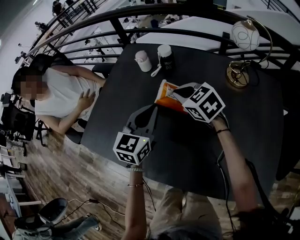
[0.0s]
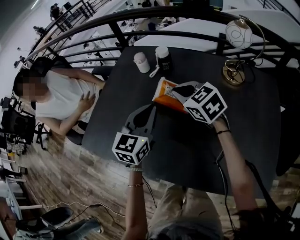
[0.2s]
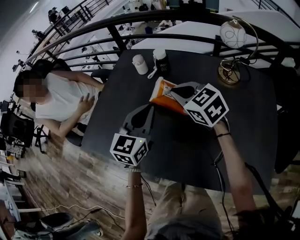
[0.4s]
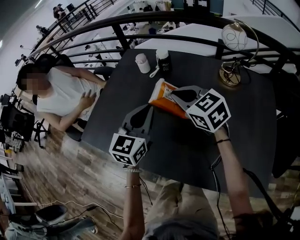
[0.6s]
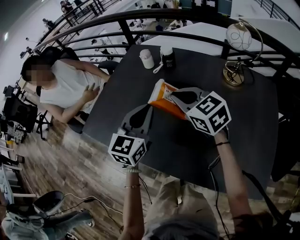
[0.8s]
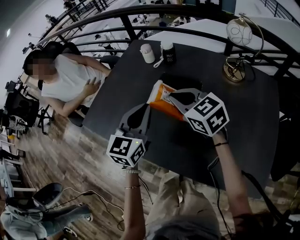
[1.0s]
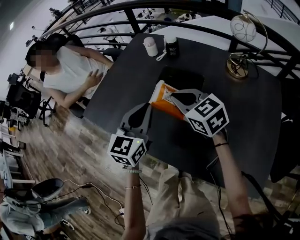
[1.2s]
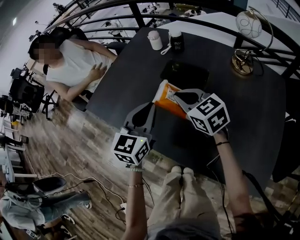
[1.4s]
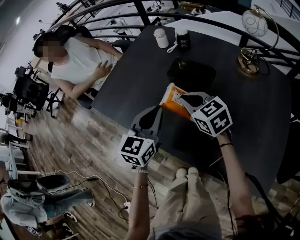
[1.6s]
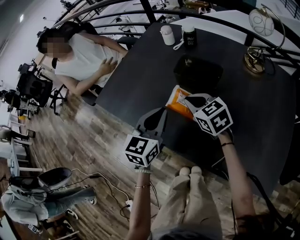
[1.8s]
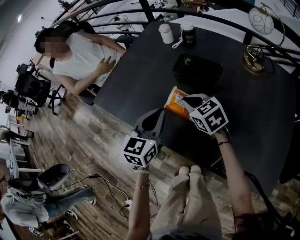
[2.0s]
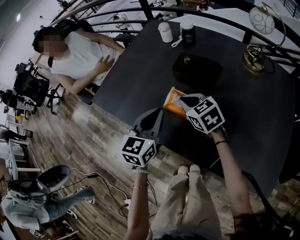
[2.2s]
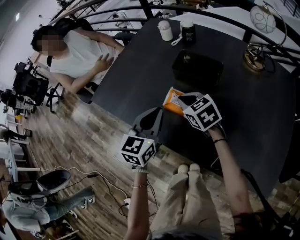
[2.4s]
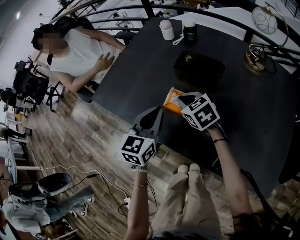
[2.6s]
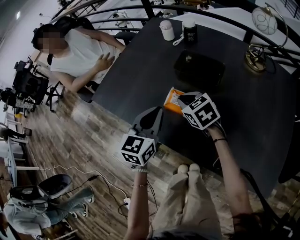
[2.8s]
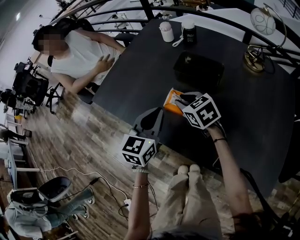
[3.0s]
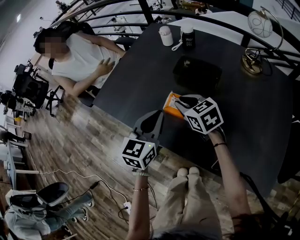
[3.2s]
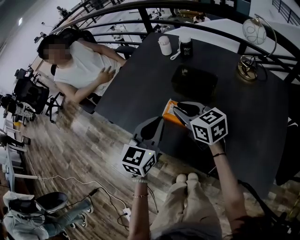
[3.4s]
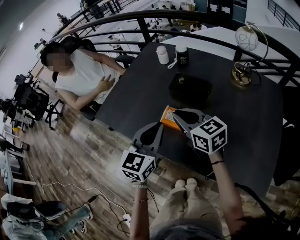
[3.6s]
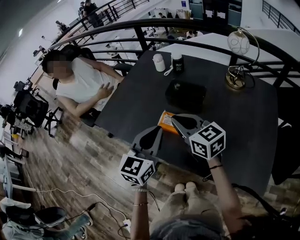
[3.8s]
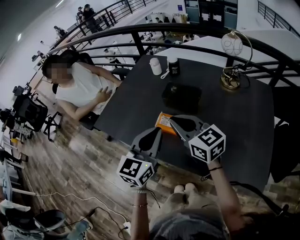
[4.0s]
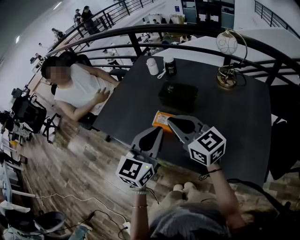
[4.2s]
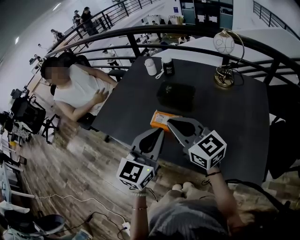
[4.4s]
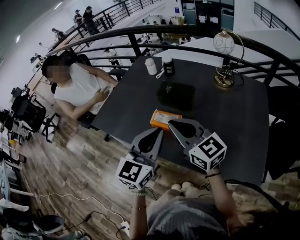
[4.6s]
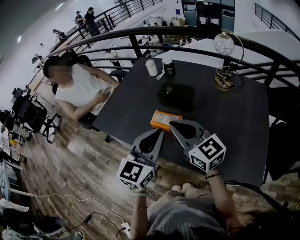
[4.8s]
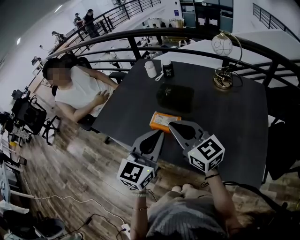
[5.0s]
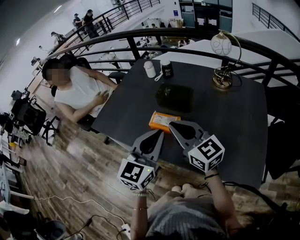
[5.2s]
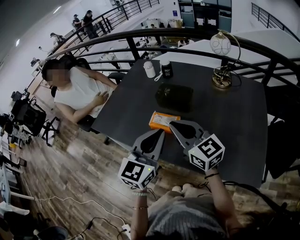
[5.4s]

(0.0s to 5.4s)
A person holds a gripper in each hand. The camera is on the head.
0.0s - 1.4s: Both grippers travel together backward, about 15 cm.
1.4s - 2.8s: The left gripper heads downward, covering some 5 cm. The right gripper shifts about 10 cm downward and to the left.
2.8s - 4.0s: Both grippers move upward and backward, about 20 cm. The right gripper points its fingers about 30 degrees further upward.
4.0s - 5.4s: The left gripper shifts by some 5 cm. The right gripper moves backward, approximately 5 cm.

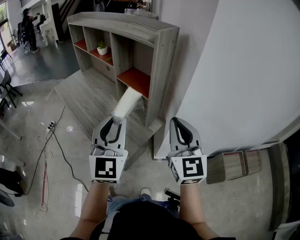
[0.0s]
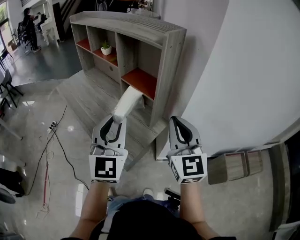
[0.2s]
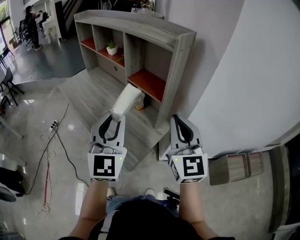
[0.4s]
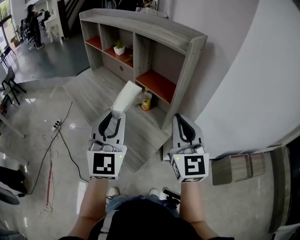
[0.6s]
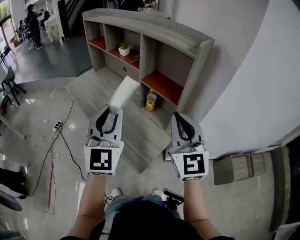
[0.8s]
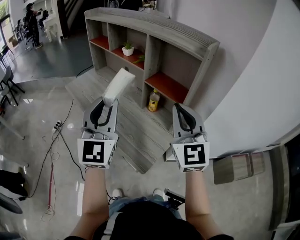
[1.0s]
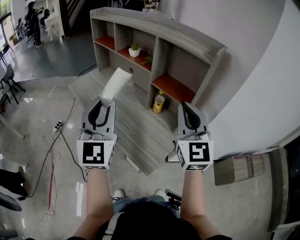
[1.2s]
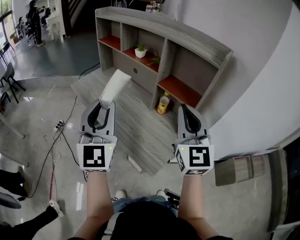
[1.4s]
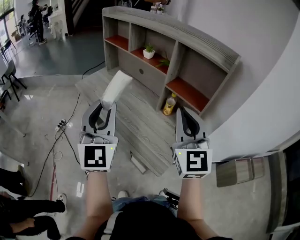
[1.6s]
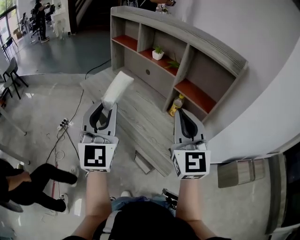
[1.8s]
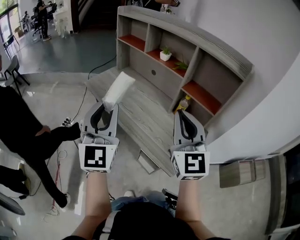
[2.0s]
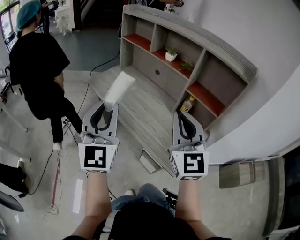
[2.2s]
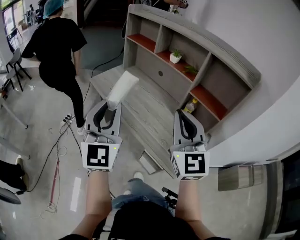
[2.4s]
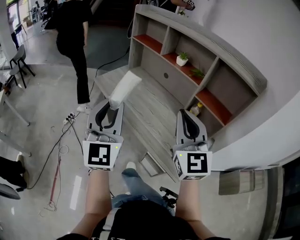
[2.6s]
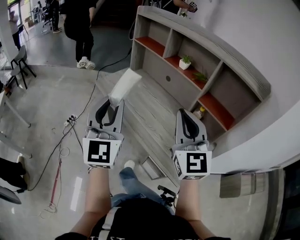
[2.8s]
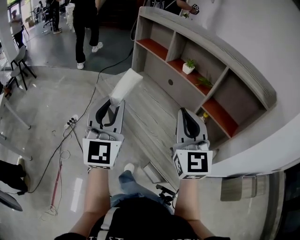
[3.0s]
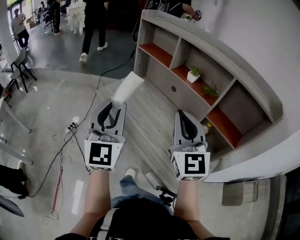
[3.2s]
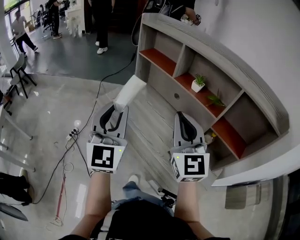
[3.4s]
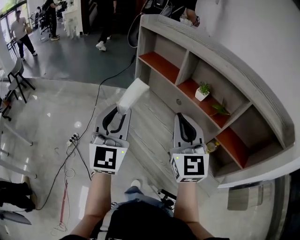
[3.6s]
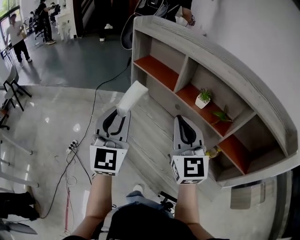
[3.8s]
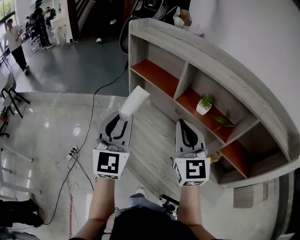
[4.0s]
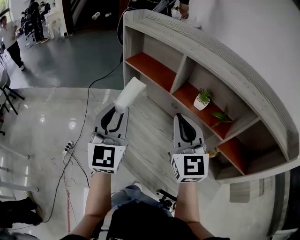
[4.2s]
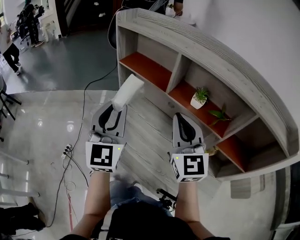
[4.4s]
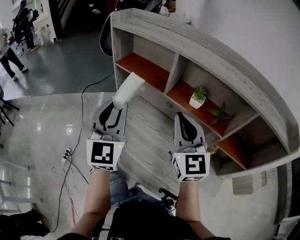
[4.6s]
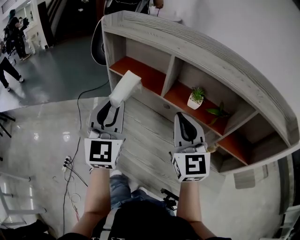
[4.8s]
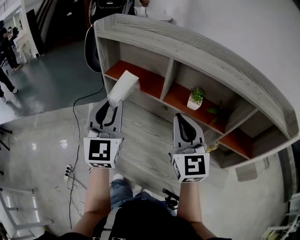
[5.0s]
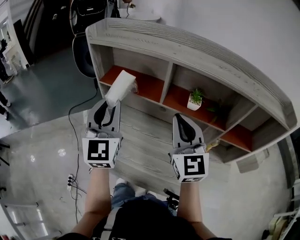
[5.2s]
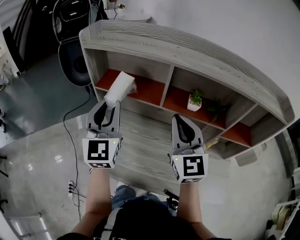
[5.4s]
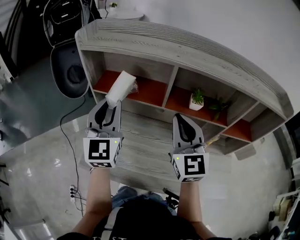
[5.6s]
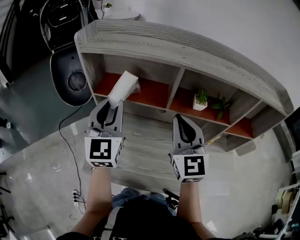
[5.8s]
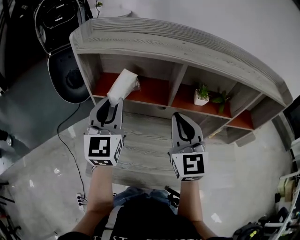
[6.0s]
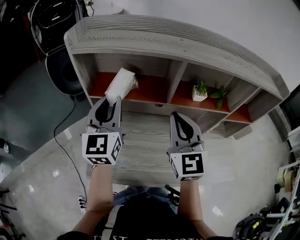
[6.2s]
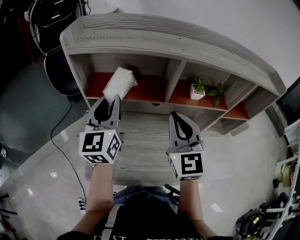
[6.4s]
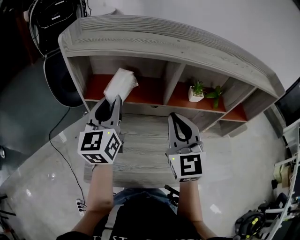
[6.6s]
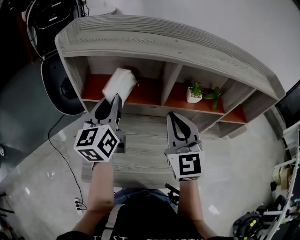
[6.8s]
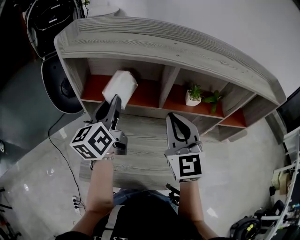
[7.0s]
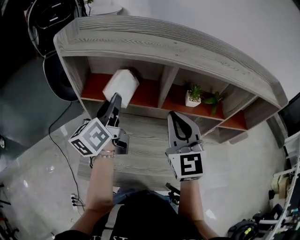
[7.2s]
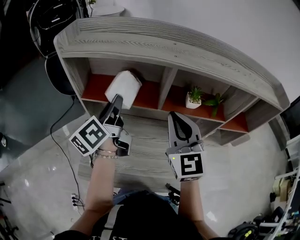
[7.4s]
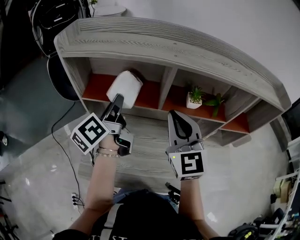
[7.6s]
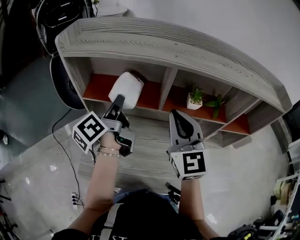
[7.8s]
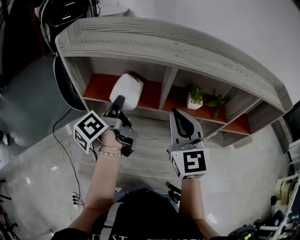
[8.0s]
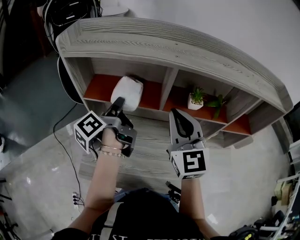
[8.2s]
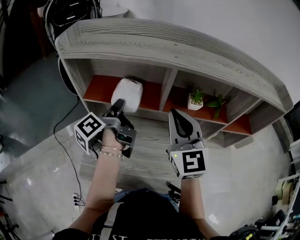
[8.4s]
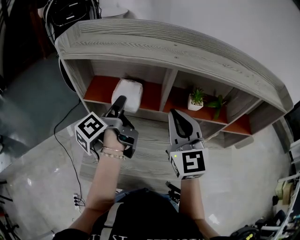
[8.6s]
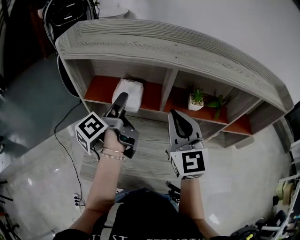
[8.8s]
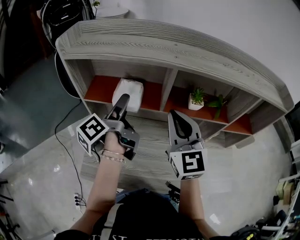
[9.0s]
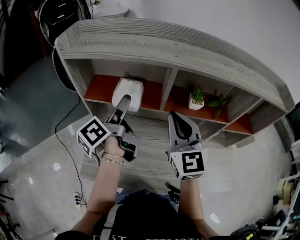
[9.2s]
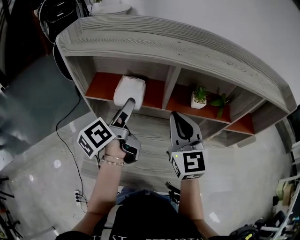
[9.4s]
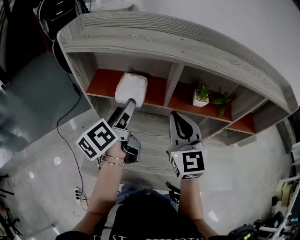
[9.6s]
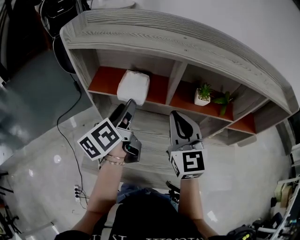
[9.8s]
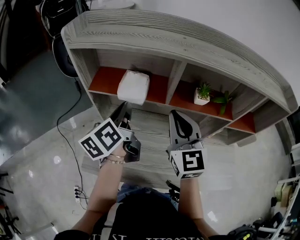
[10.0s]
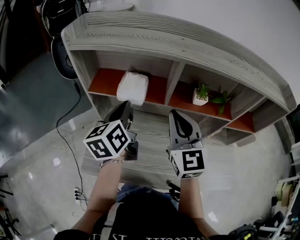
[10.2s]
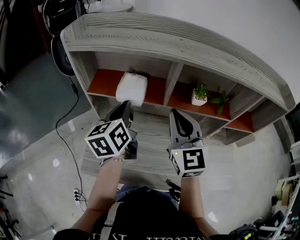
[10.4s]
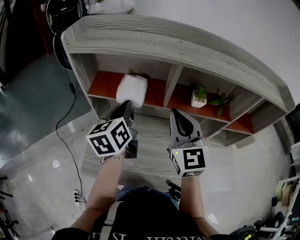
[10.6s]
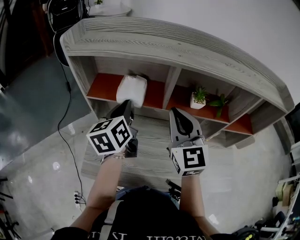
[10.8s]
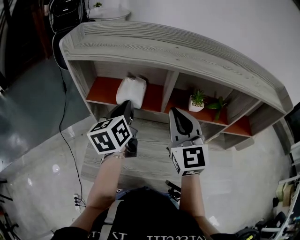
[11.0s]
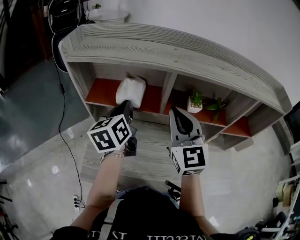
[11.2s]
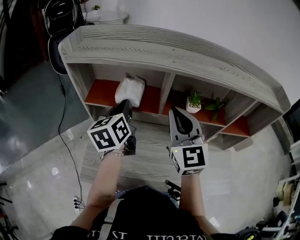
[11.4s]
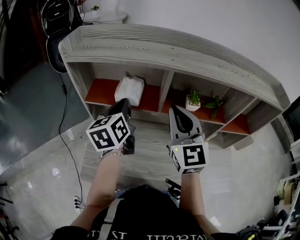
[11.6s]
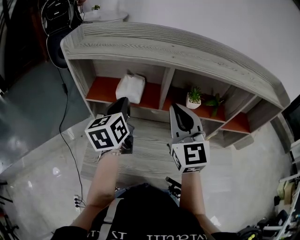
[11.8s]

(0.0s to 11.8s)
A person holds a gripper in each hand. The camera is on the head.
0.0s - 1.4s: The two grippers go approximately 25 cm to the left.
1.4s - 3.0s: Both grippers travel together to the left and forward, approximately 25 cm.
3.0s - 4.4s: The grippers both shift forward by some 30 cm.
4.4s - 6.0s: The left gripper shifts by some 20 cm, and changes its angle by roughly 30 degrees. The right gripper moves some 10 cm, and swivels approximately 30 degrees.
6.0s - 7.4s: The left gripper changes place by some 5 cm, and rotates around the line of its fingers by about 60 degrees, counterclockwise from behind.
7.4s - 8.8s: The left gripper swivels about 30 degrees, and opens.
8.8s - 10.4s: The left gripper rotates around the line of its fingers by roughly 50 degrees, clockwise from behind, and closes its fingers.
10.4s - 11.8s: The grippers stay close to where they were, moving slightly.

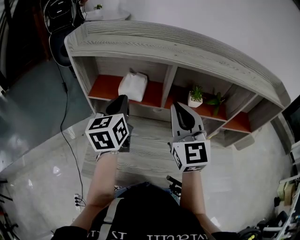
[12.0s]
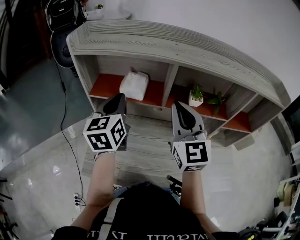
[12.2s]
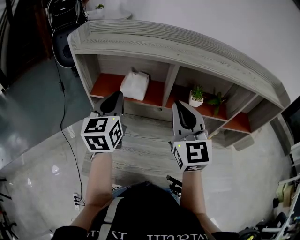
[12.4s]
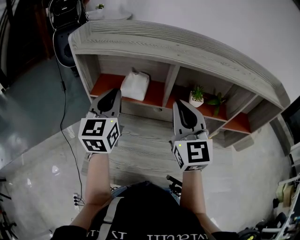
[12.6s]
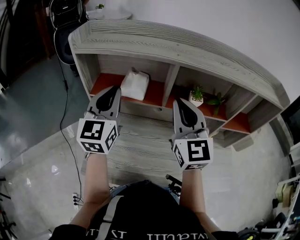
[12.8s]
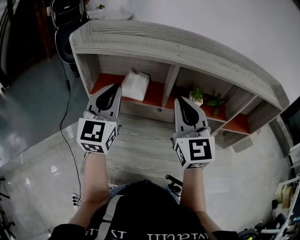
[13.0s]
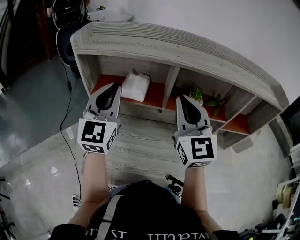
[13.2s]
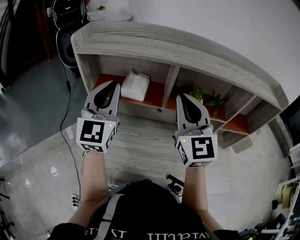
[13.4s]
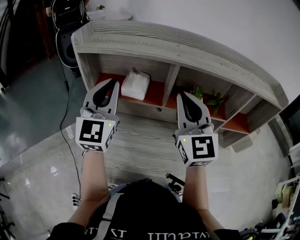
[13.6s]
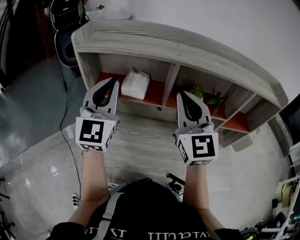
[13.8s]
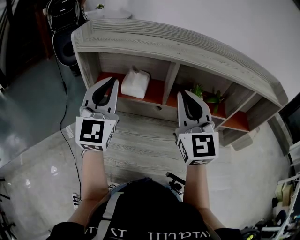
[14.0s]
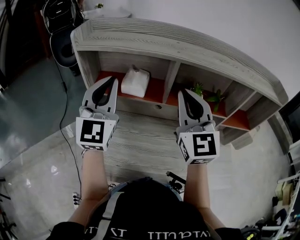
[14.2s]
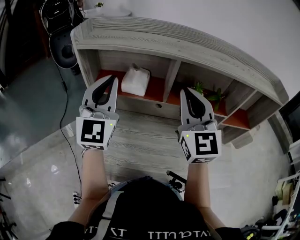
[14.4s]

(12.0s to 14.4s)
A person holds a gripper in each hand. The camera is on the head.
12.0s - 13.2s: The left gripper travels upward by some 10 cm, and rotates approximately 40 degrees.
13.2s - 14.4s: The grippers make only small movements.

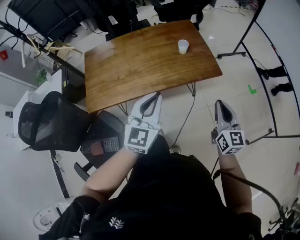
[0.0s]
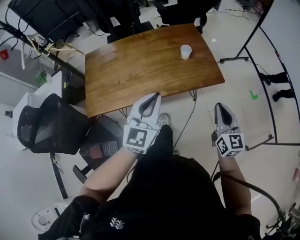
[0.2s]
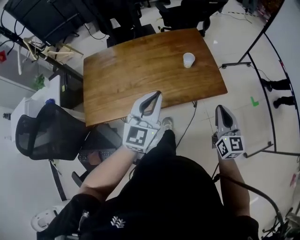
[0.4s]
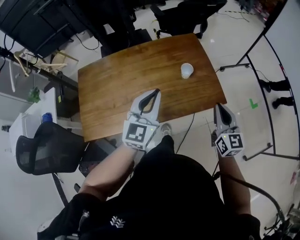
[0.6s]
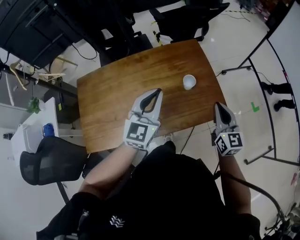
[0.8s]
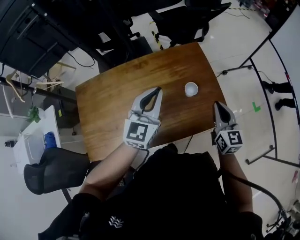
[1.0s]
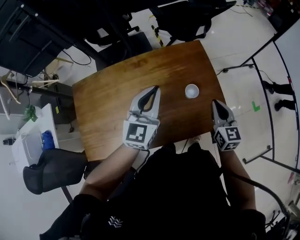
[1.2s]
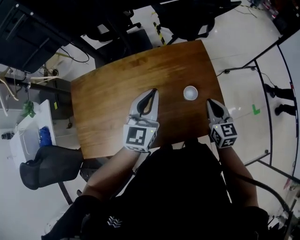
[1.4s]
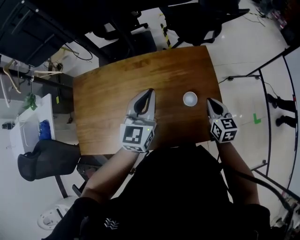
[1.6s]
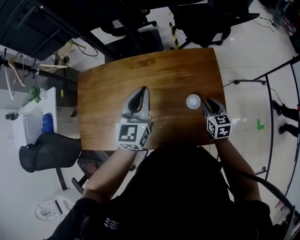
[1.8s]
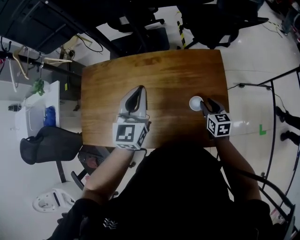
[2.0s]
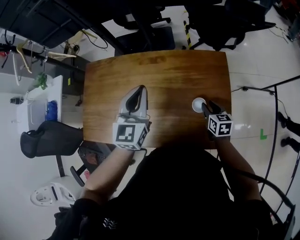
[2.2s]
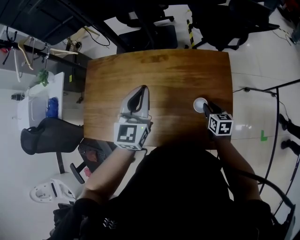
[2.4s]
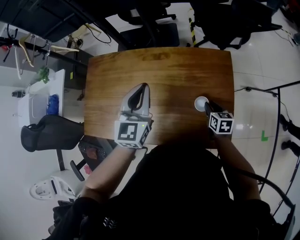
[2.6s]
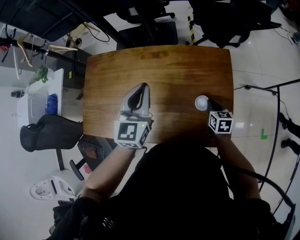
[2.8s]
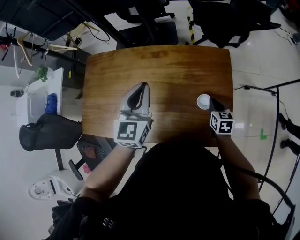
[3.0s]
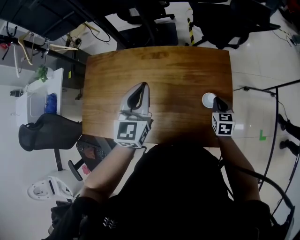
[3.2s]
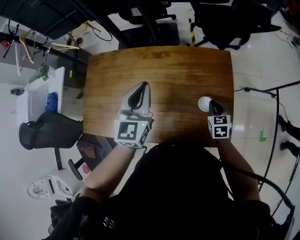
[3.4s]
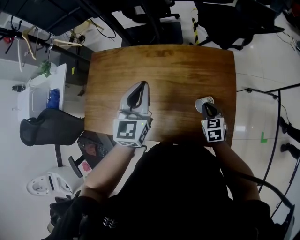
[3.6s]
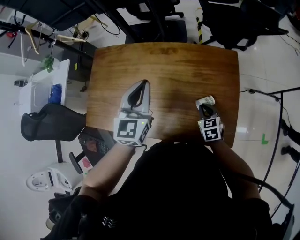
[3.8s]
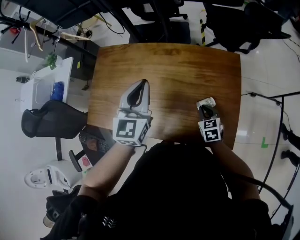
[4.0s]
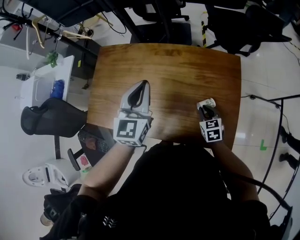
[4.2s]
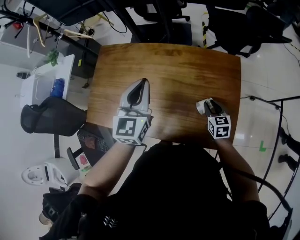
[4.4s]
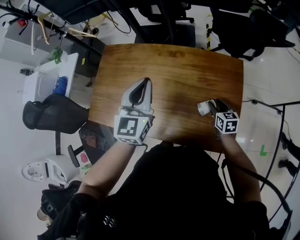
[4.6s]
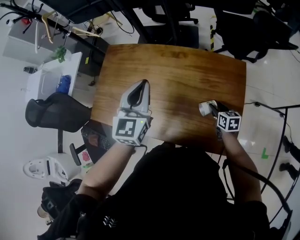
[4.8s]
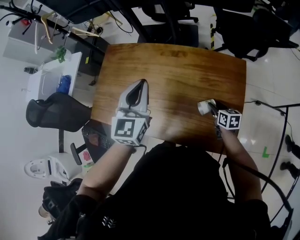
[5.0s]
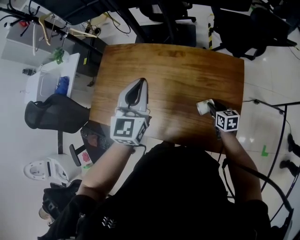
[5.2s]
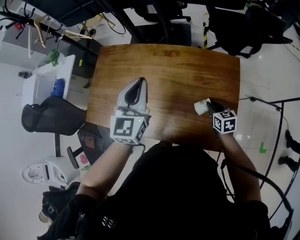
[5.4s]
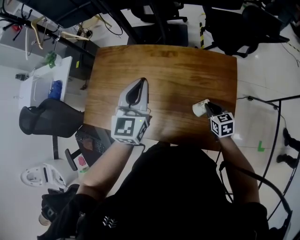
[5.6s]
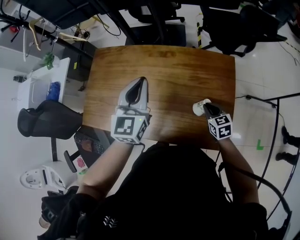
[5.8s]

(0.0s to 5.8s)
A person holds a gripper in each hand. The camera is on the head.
0.0s - 1.4s: The grippers both shift forward by about 35 cm.
1.4s - 2.8s: The right gripper moves downward and forward, approximately 15 cm, rotates some 20 degrees, and opens and closes again. The left gripper shifts some 5 cm to the left, and changes its angle by about 20 degrees.
2.8s - 4.4s: The left gripper shifts by roughly 5 cm; the right gripper heads to the left, covering some 5 cm, and opens up.
4.4s - 5.8s: The right gripper closes its fingers.
